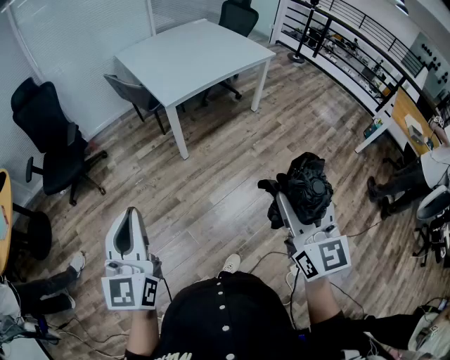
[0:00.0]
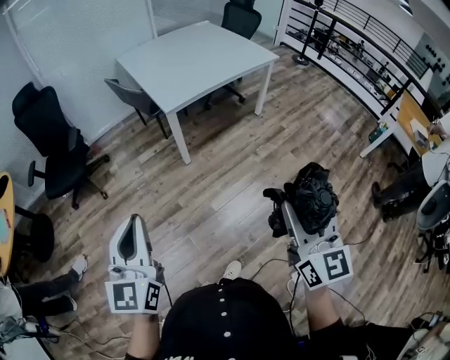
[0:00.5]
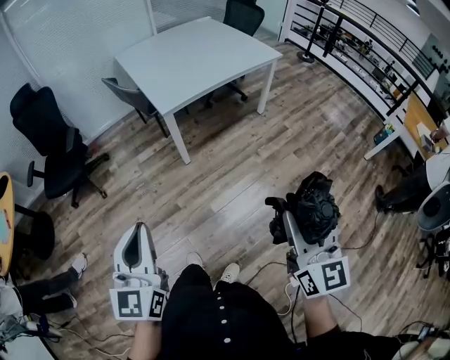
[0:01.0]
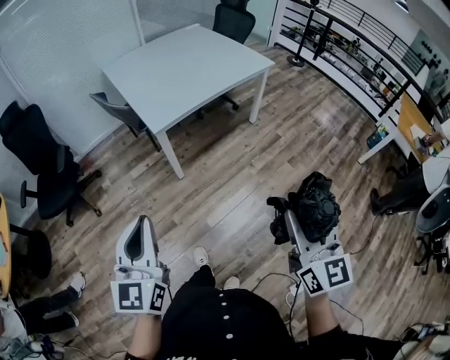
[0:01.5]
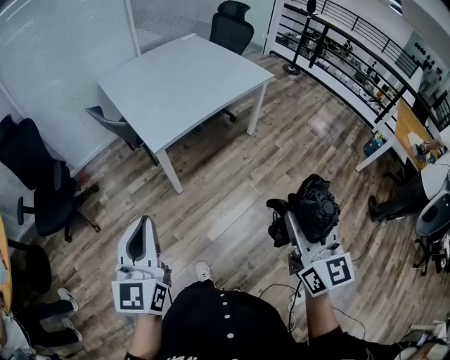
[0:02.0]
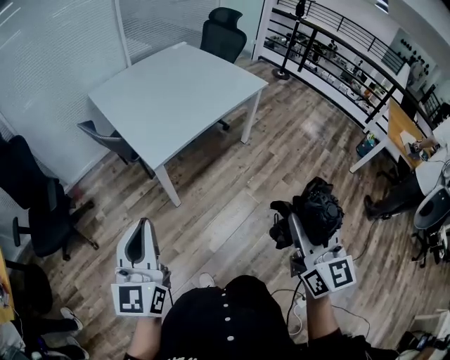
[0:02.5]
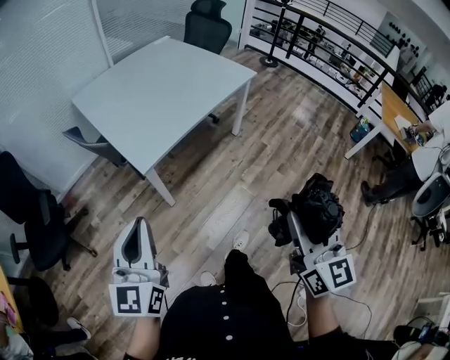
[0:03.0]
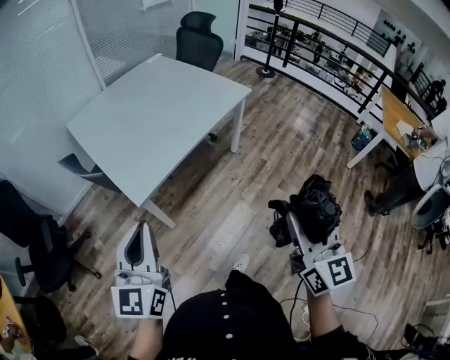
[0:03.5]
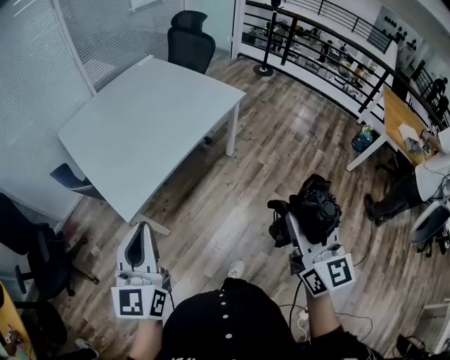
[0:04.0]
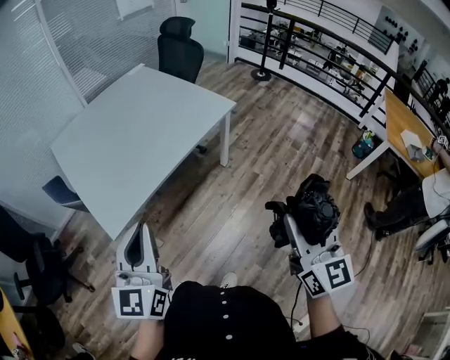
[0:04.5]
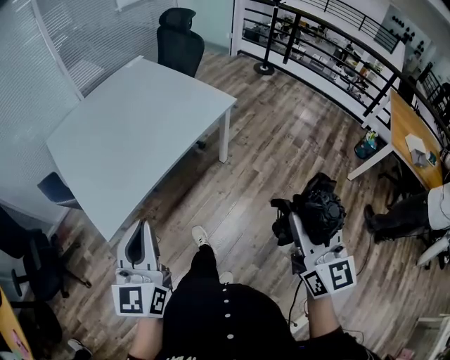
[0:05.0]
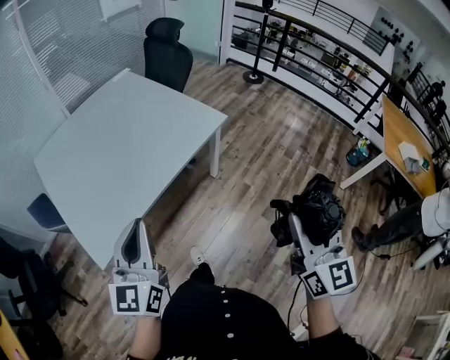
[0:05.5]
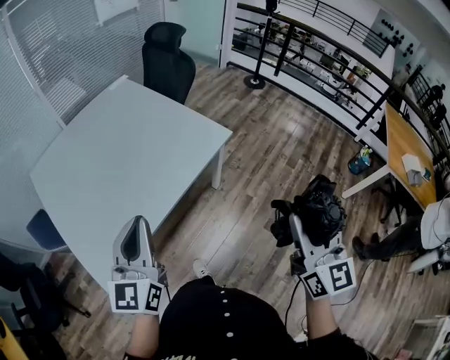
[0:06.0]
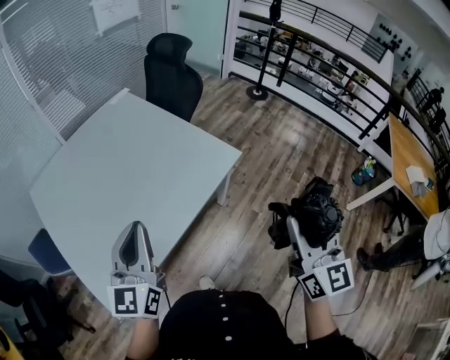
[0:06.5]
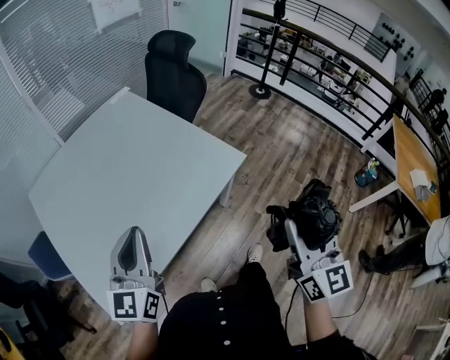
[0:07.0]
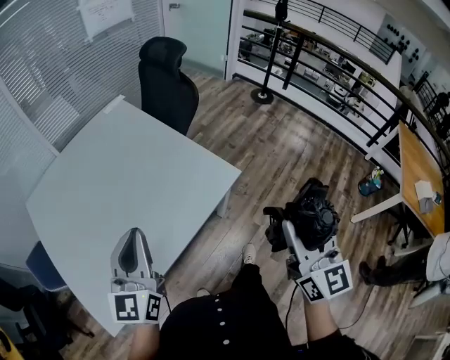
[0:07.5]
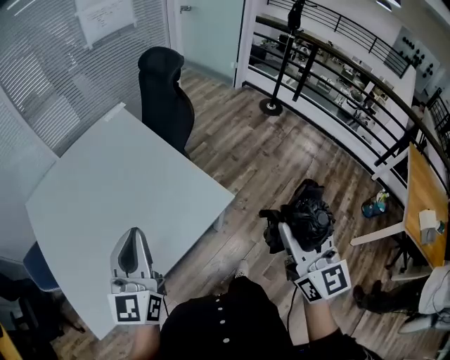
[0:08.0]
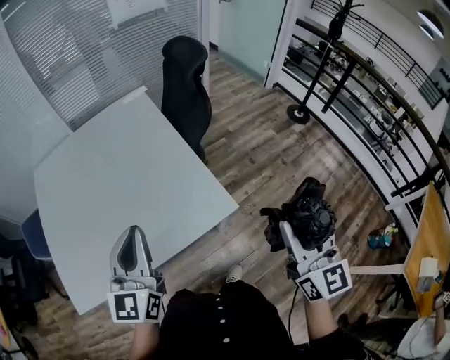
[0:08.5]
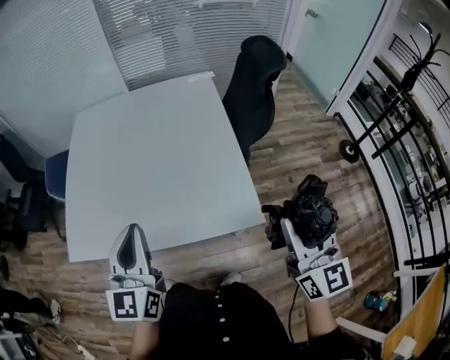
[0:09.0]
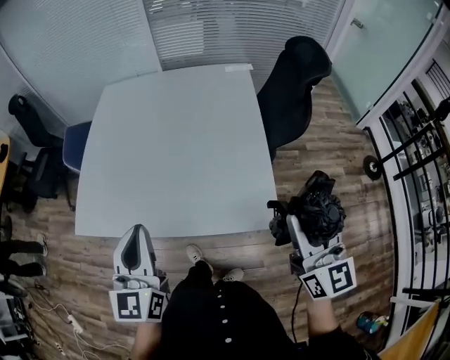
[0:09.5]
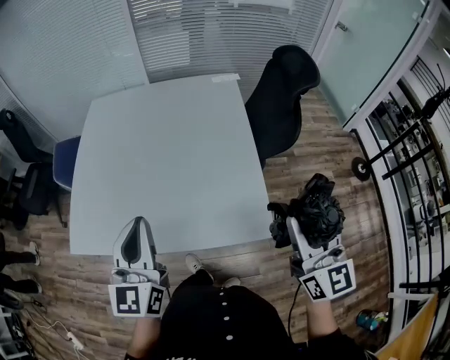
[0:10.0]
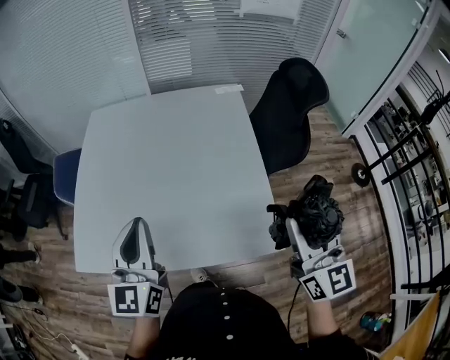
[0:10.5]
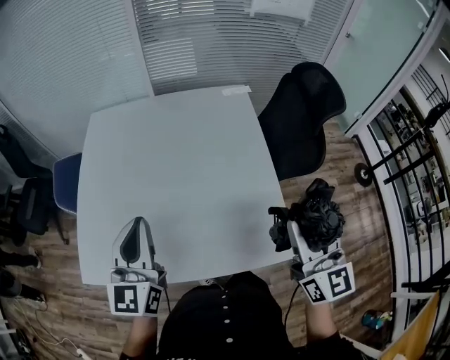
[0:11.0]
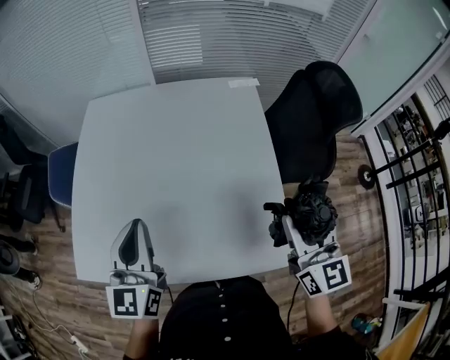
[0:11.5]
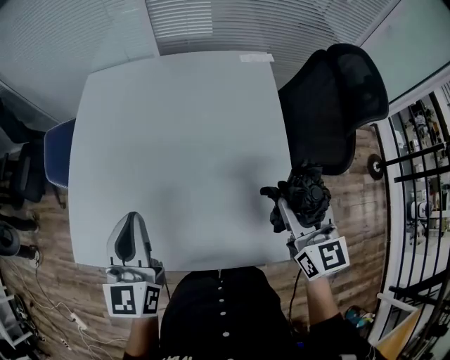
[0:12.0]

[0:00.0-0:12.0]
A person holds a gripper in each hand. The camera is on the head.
0:00.0 to 0:02.0: The two grippers go approximately 20 cm forward.
0:02.0 to 0:04.0: The left gripper is displaced forward by approximately 25 cm. The right gripper shifts some 20 cm forward and to the right.
0:04.0 to 0:06.0: The grippers both shift forward by some 30 cm.
0:06.0 to 0:08.0: The grippers both shift forward by about 25 cm.
0:08.0 to 0:10.0: The left gripper ends up some 5 cm from where it was, and changes its angle by some 40 degrees, while the right gripper moves about 20 cm, and rotates approximately 40 degrees.
0:10.0 to 0:12.0: The right gripper shifts about 25 cm forward and downward; the left gripper shifts some 15 cm forward and to the left.

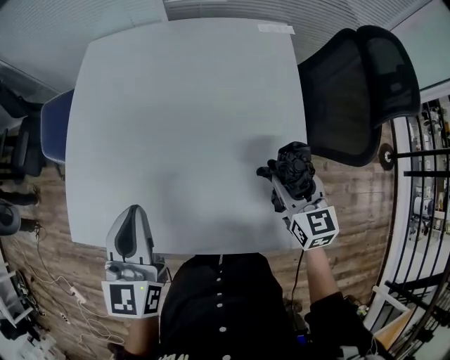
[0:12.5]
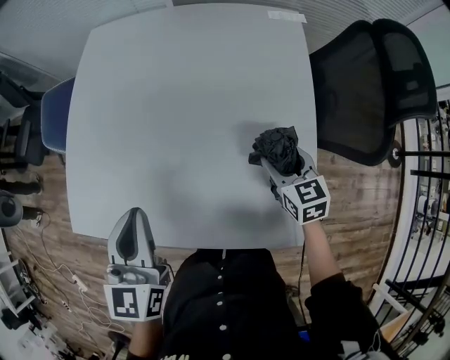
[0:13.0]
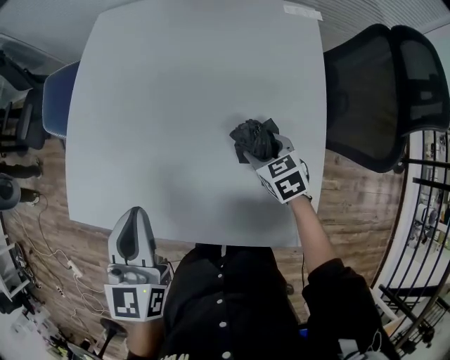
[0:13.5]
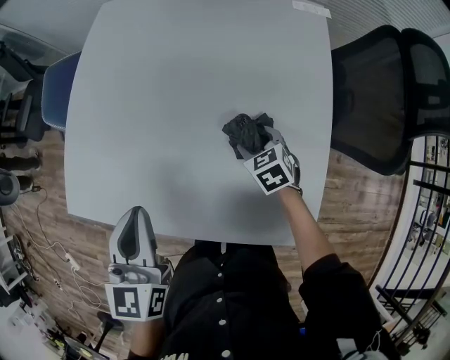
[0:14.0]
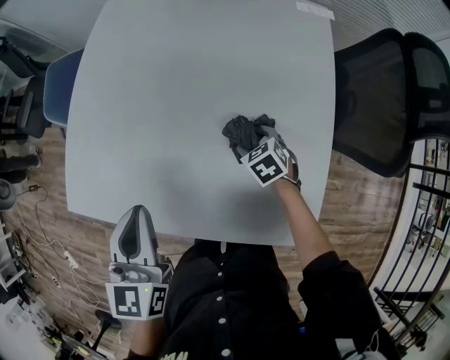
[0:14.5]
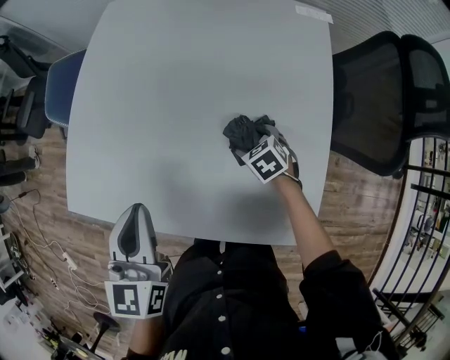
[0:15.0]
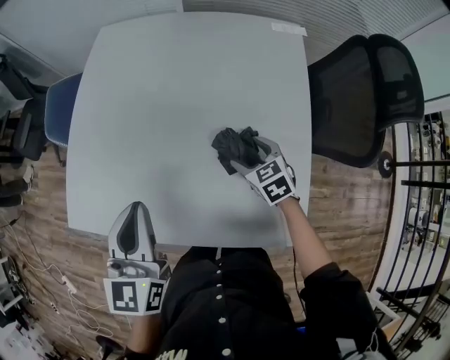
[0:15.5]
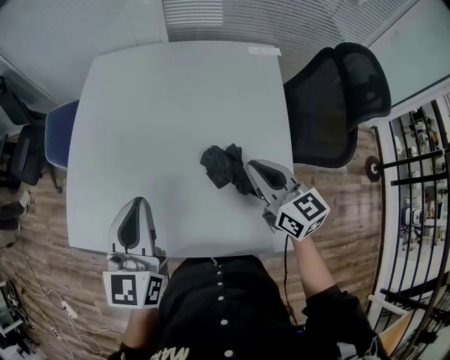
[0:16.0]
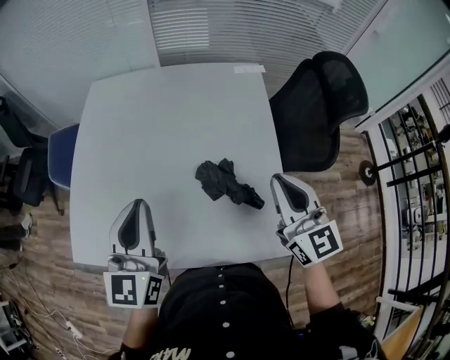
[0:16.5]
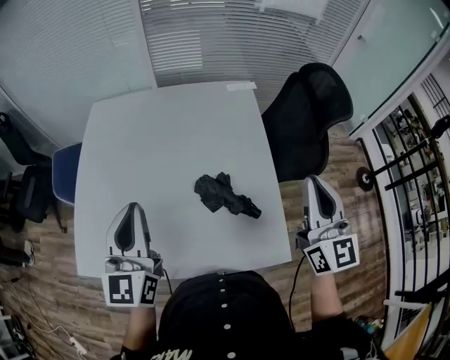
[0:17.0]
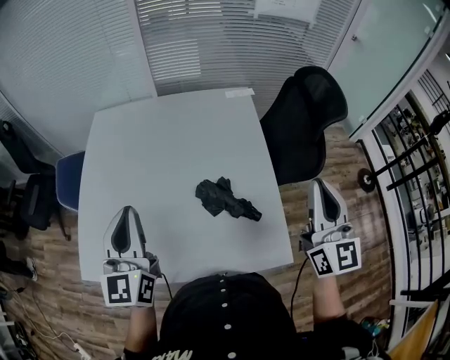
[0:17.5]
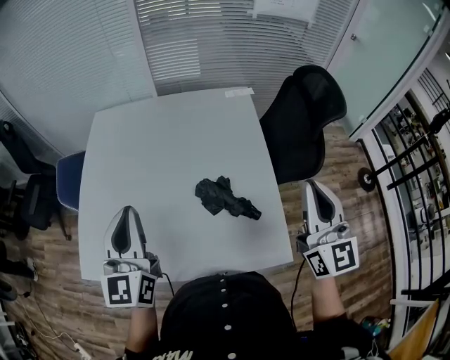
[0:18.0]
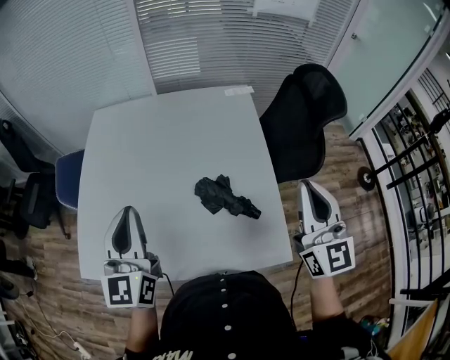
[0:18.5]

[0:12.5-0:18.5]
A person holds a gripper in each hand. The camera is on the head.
0:12.5 to 0:14.5: The right gripper travels downward, to the left and forward by approximately 25 cm, and tilts its fingers some 30 degrees downward. Meanwhile the left gripper changes place by about 5 cm.
0:14.5 to 0:16.5: The right gripper travels upward by approximately 35 cm, tips its fingers upward by approximately 60 degrees, and closes. The left gripper moves upward, roughly 10 cm, and turns by approximately 20 degrees.
0:16.5 to 0:18.5: The right gripper moves upward and to the right, about 10 cm.
